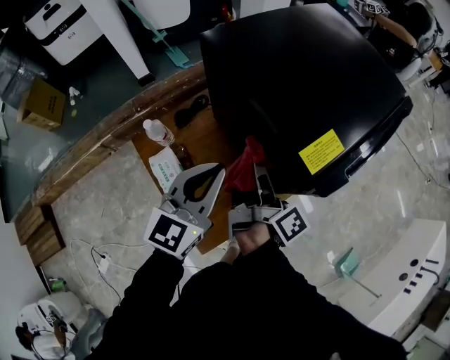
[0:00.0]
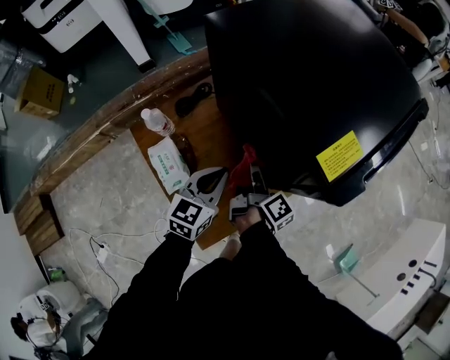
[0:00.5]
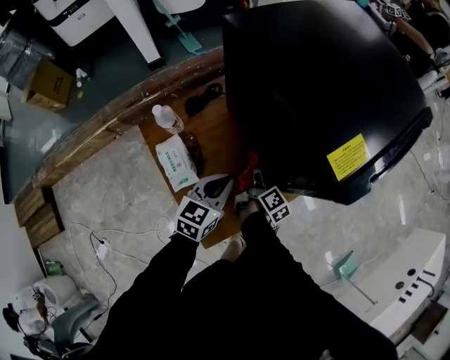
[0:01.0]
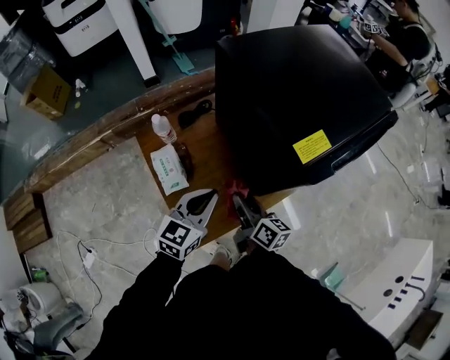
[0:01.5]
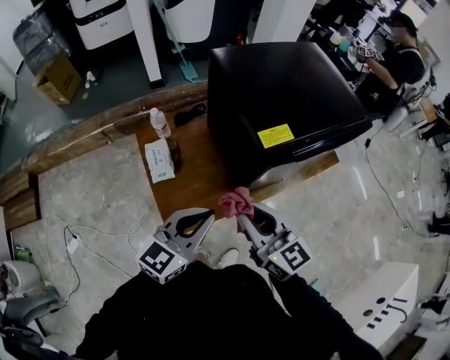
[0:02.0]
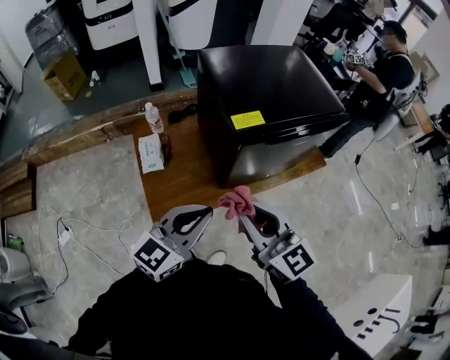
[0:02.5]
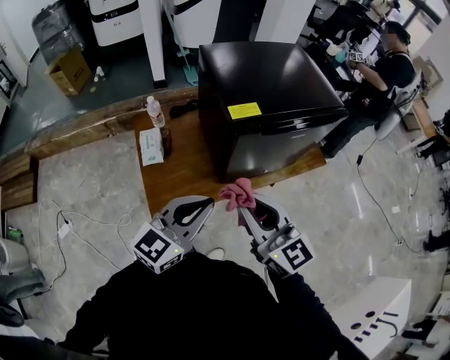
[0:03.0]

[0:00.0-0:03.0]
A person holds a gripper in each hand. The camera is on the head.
0:00.0 to 0:01.5: The two grippers go some 15 cm downward and backward. The right gripper swivels roughly 50 degrees.
0:01.5 to 0:03.0: The right gripper goes about 35 cm upward, backward and to the right, and rotates around the line of its fingers by roughly 50 degrees, counterclockwise from behind; the left gripper travels backward, upward and to the right by about 30 cm.

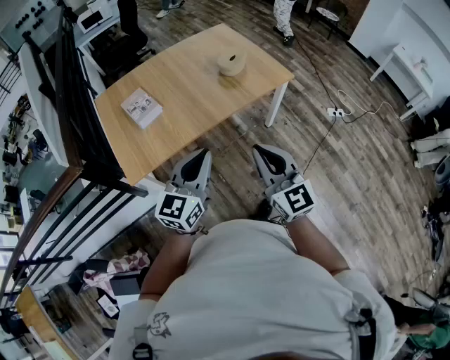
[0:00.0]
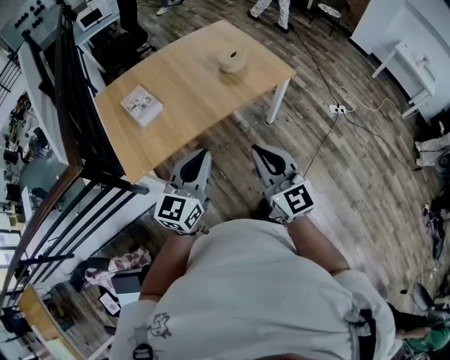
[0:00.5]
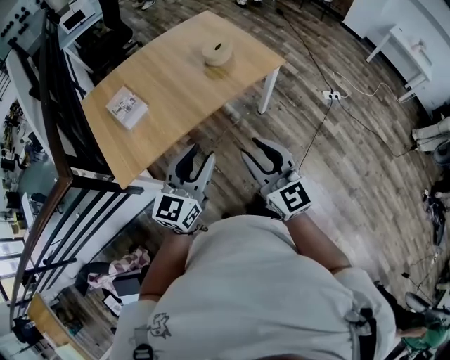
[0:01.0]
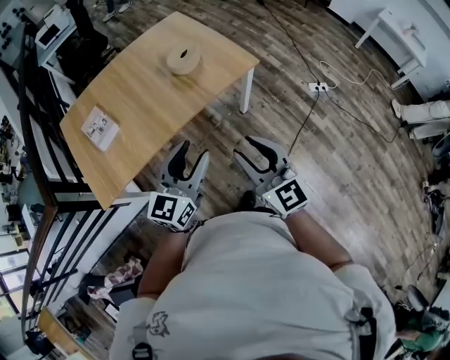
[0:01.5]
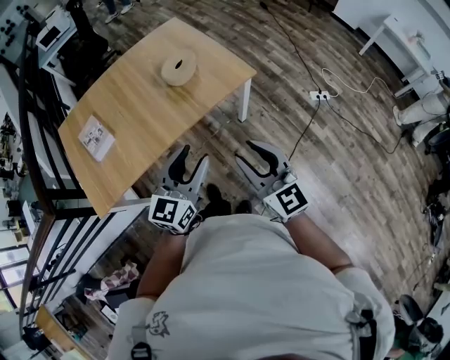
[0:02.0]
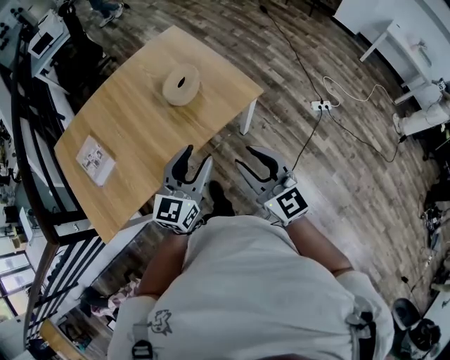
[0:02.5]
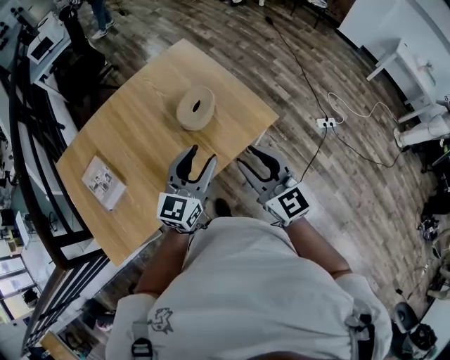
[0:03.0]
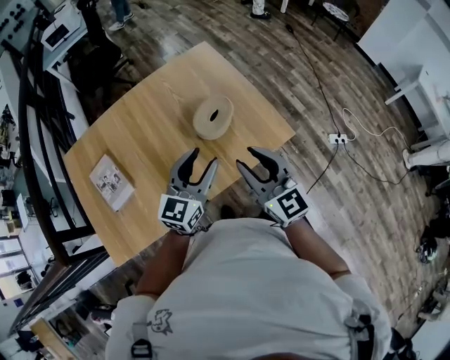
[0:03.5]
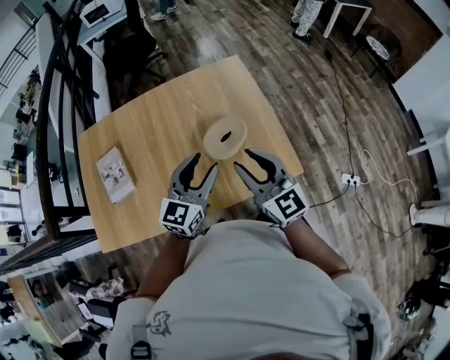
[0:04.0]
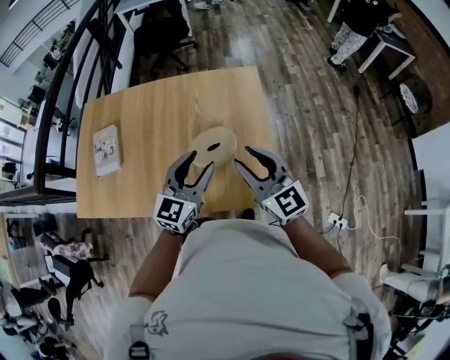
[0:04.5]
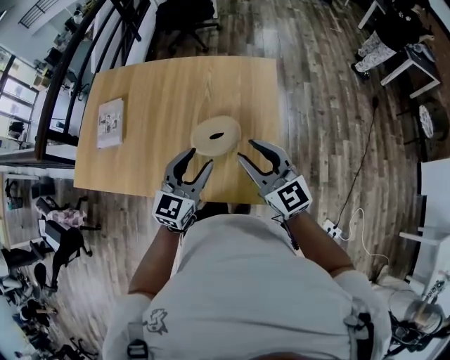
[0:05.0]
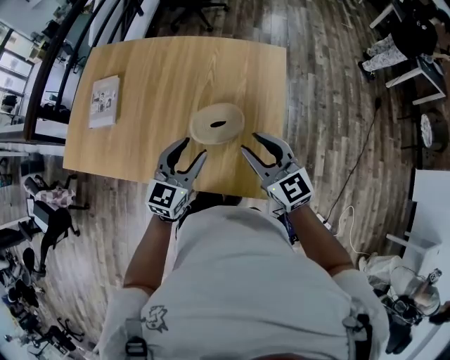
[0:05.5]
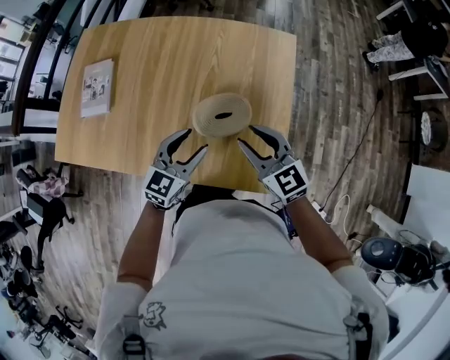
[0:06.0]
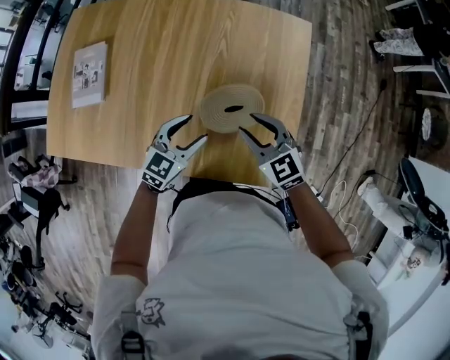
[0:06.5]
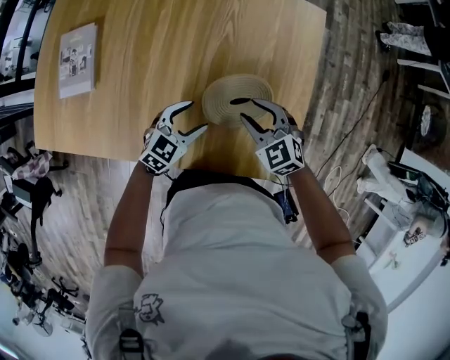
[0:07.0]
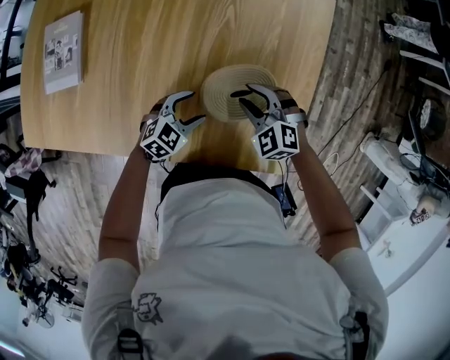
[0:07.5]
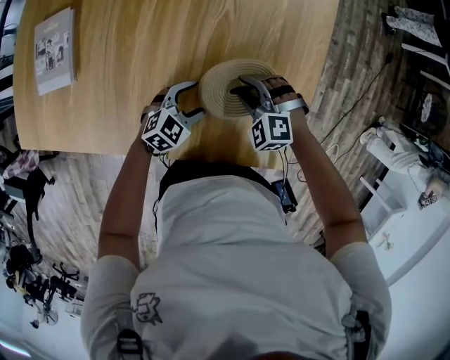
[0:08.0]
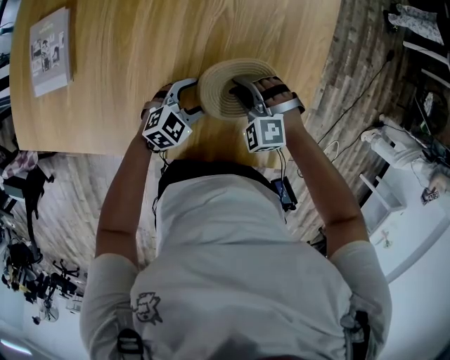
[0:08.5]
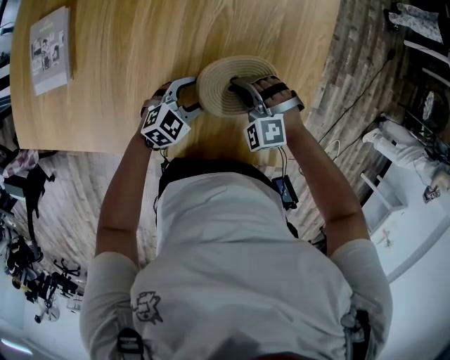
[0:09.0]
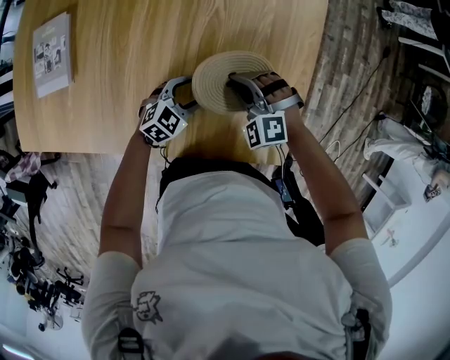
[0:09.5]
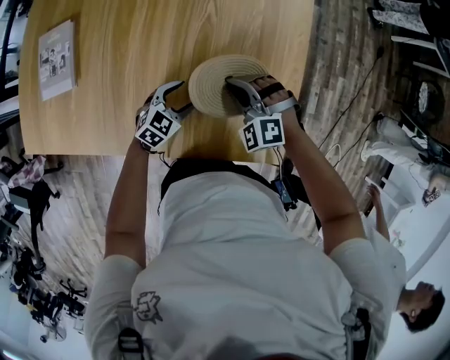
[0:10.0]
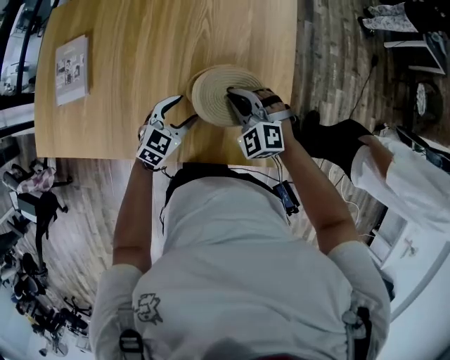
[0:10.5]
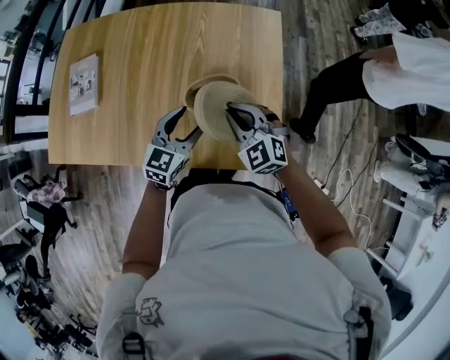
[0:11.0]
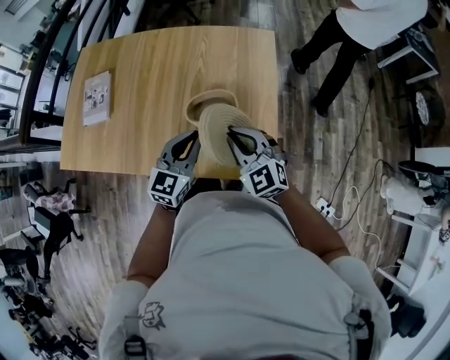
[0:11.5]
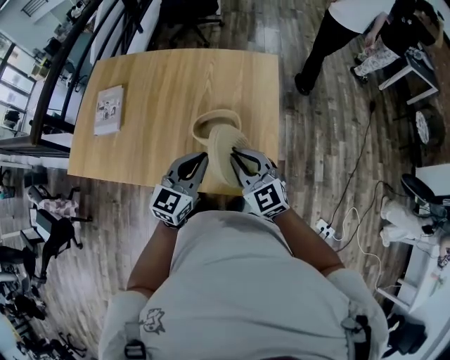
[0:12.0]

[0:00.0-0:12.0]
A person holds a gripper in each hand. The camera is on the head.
0:00.0 to 0:02.0: The grippers both shift to the right and forward by roughly 25 cm. The right gripper opens. The left gripper opens up.
0:02.0 to 0:04.0: The grippers both shift forward by roughly 40 cm.
0:04.0 to 0:06.0: The right gripper ends up about 15 cm from where it was, and turns by about 40 degrees; the left gripper travels downward by roughly 15 cm, and changes its angle by approximately 20 degrees.
0:06.0 to 0:08.0: The grippers both shift downward by about 25 cm. The right gripper tilts its fingers roughly 40 degrees downward, while the left gripper changes its angle by roughly 30 degrees.
0:08.0 to 0:10.0: The right gripper shifts roughly 5 cm upward, and closes its fingers.
0:10.0 to 0:12.0: The two grippers go approximately 30 cm upward and backward. The right gripper tips its fingers upward by approximately 30 degrees, while the left gripper rotates some 40 degrees, and closes up.

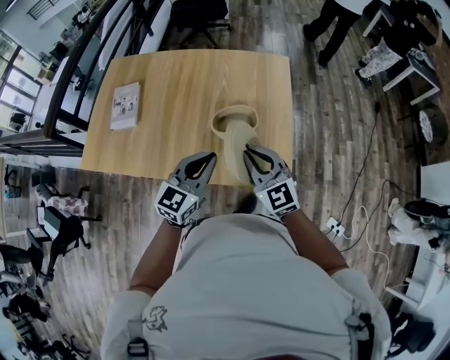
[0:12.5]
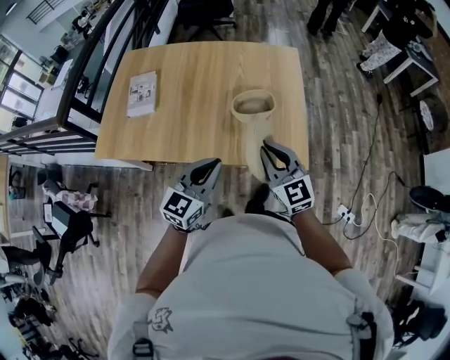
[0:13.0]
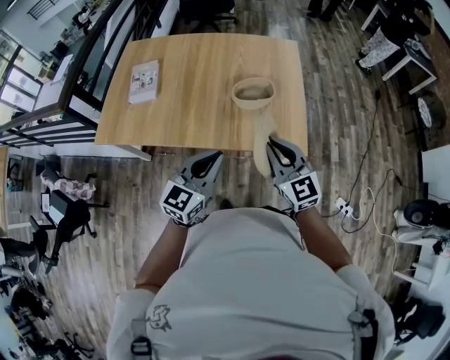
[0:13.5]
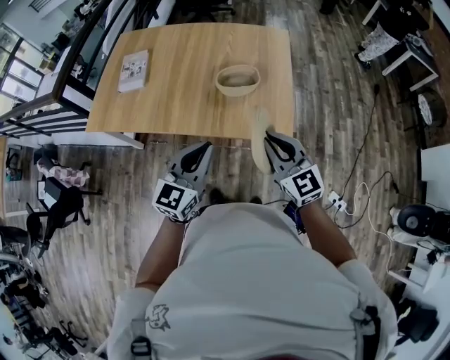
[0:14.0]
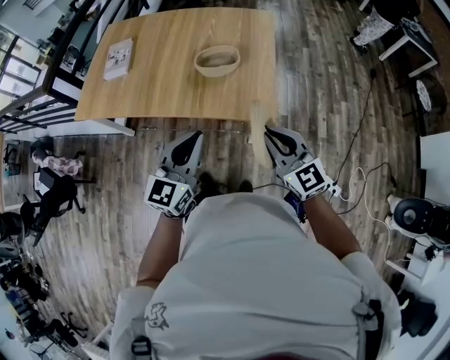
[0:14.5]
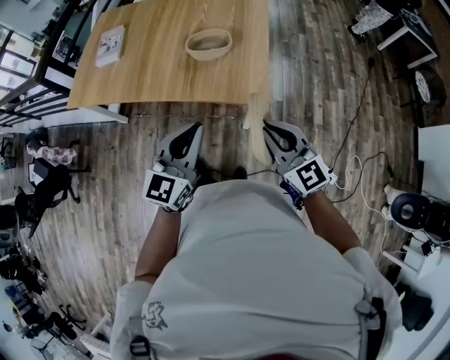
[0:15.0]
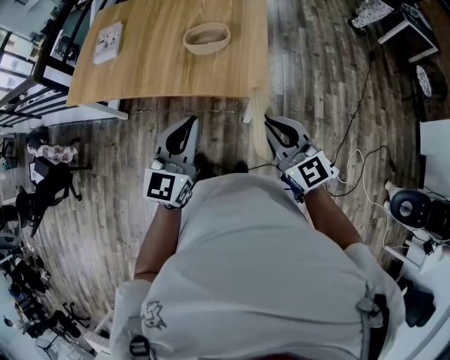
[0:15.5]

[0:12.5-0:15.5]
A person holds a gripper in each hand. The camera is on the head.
0:12.5 to 0:14.0: Both grippers travel together backward, roughly 20 cm.
0:14.0 to 0:15.5: The left gripper goes about 10 cm to the right and backward. The right gripper shifts approximately 15 cm backward and to the right.

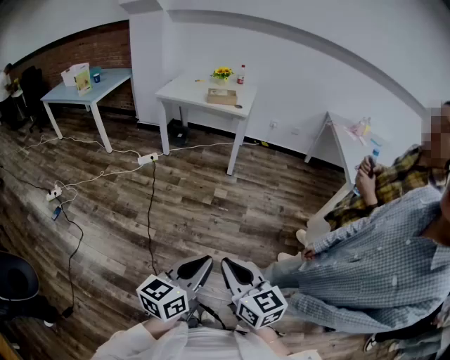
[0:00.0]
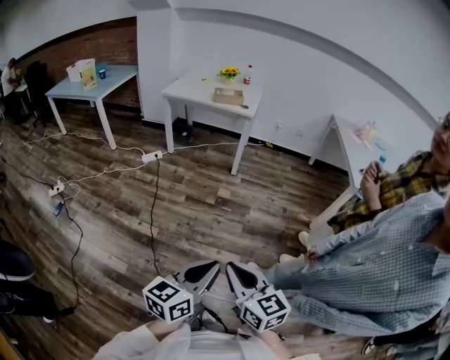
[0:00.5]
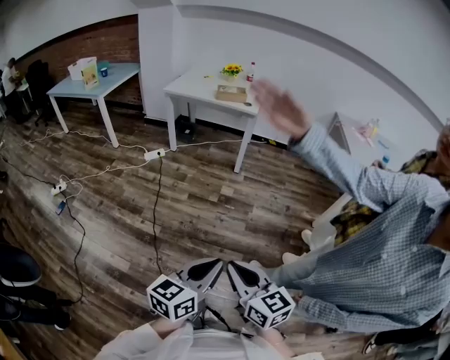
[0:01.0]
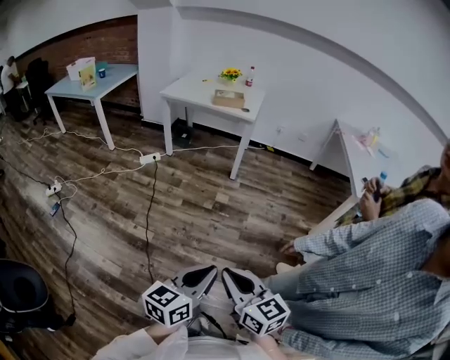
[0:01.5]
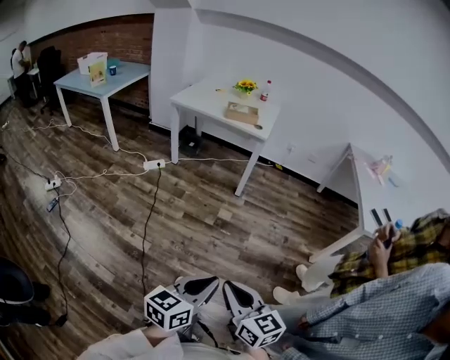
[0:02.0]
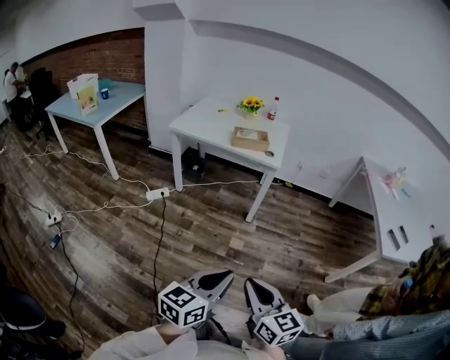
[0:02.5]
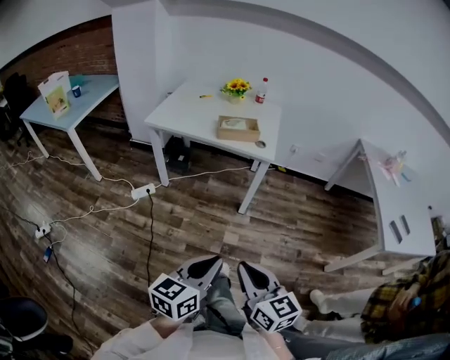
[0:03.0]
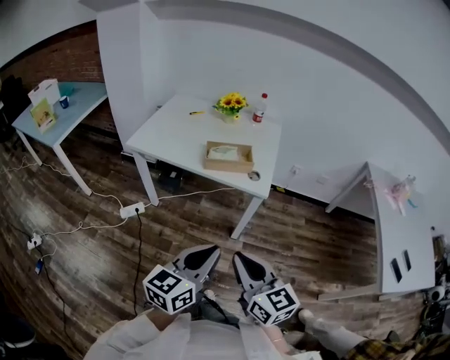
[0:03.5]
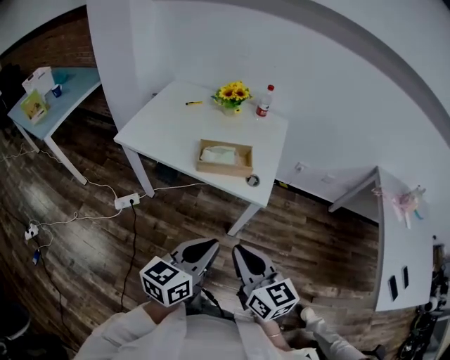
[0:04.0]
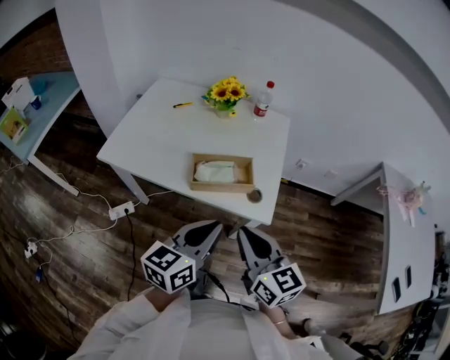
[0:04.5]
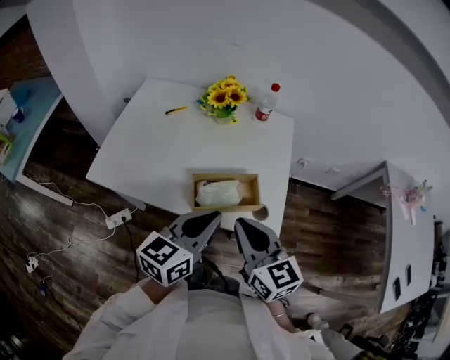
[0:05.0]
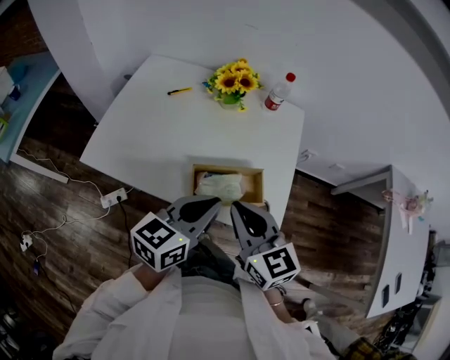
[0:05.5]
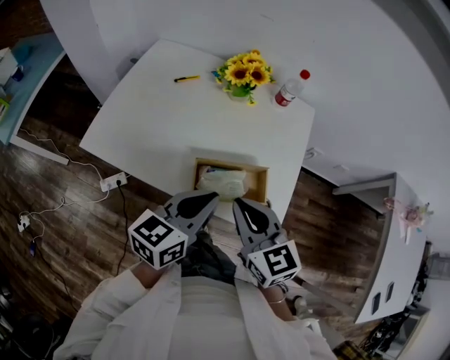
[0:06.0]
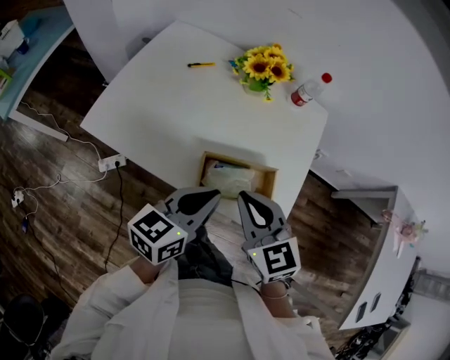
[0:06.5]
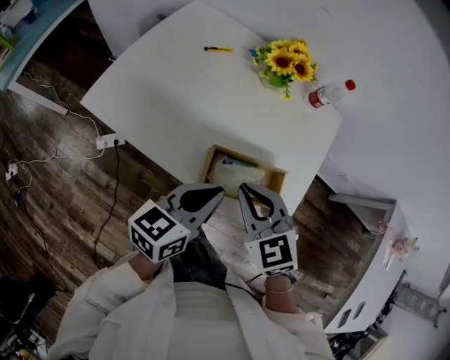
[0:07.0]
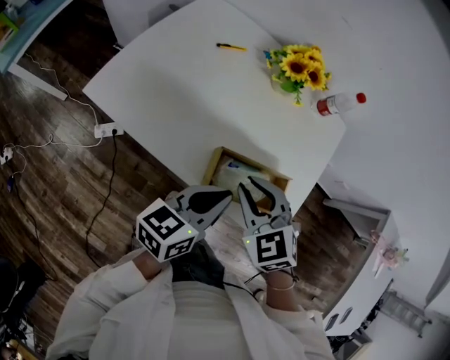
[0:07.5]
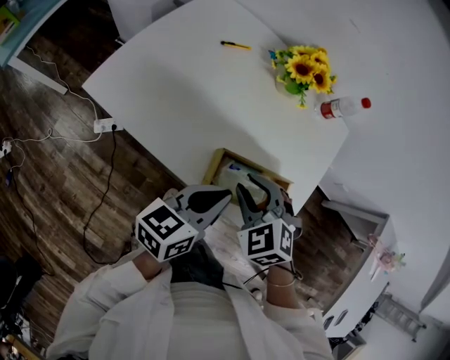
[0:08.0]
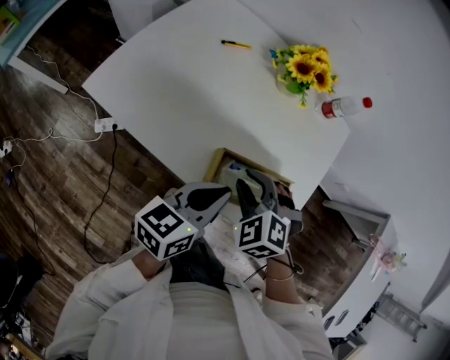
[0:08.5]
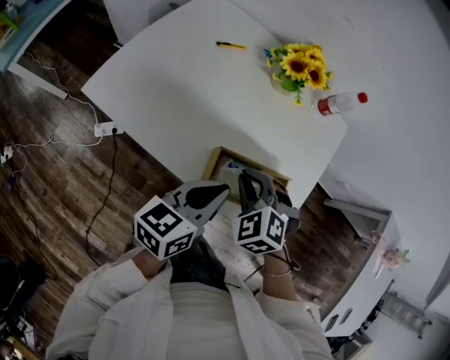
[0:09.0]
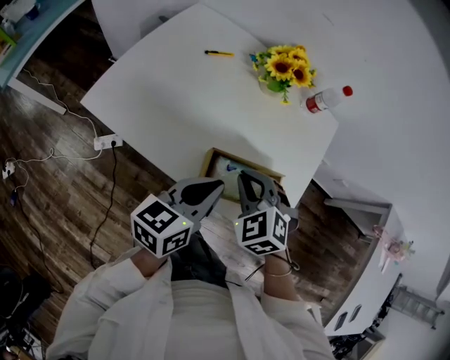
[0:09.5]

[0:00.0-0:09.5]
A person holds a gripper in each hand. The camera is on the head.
0:00.0 to 0:02.0: Both grippers move forward, roughly 10 cm.
0:02.0 to 0:04.0: The two grippers travel together, forward, about 70 cm.
0:04.0 to 0:05.5: The two grippers go approximately 30 cm forward.
0:05.5 to 0:07.5: The left gripper travels downward by some 5 cm; the right gripper shifts roughly 10 cm downward and forward, and swivels approximately 50 degrees.
